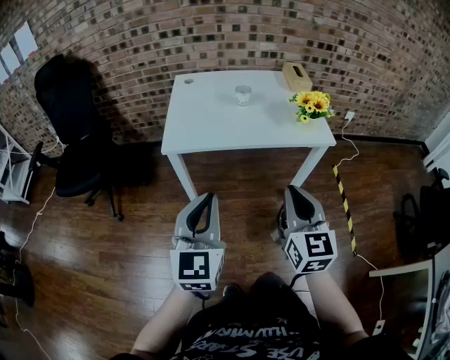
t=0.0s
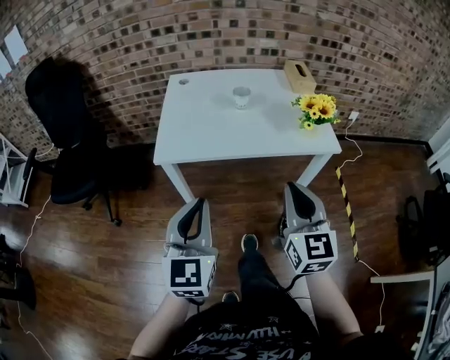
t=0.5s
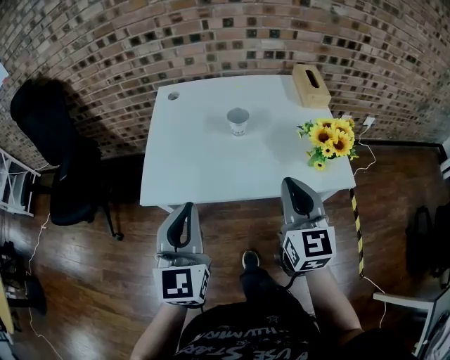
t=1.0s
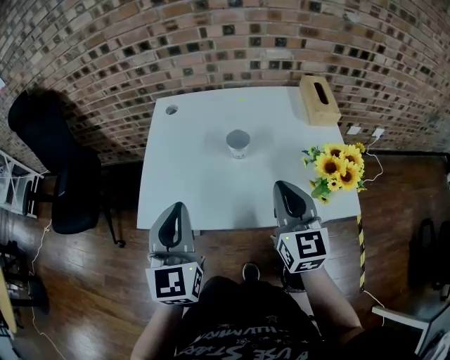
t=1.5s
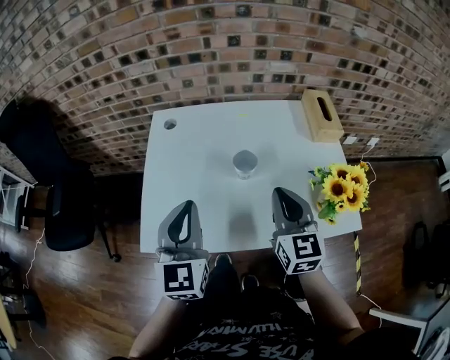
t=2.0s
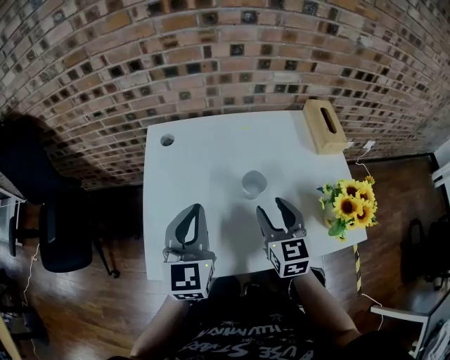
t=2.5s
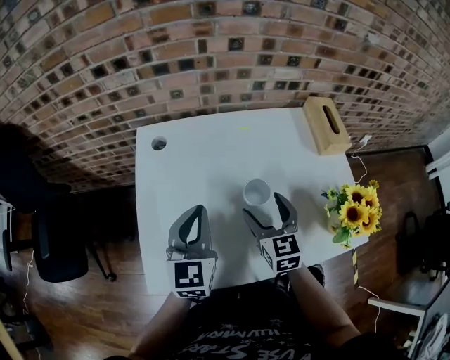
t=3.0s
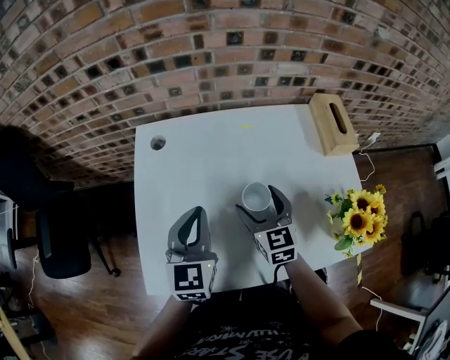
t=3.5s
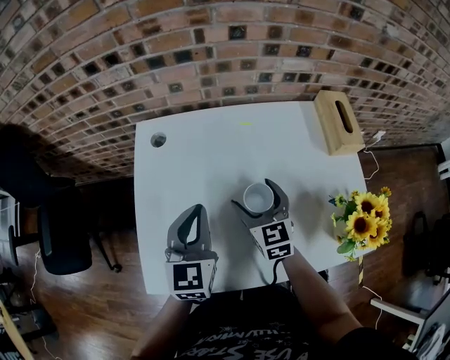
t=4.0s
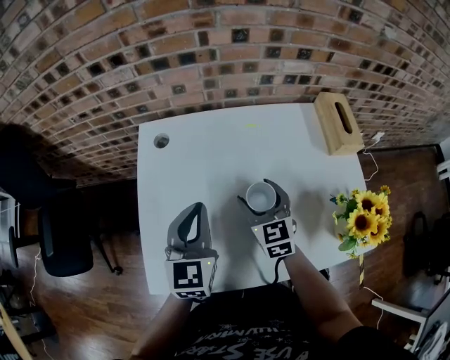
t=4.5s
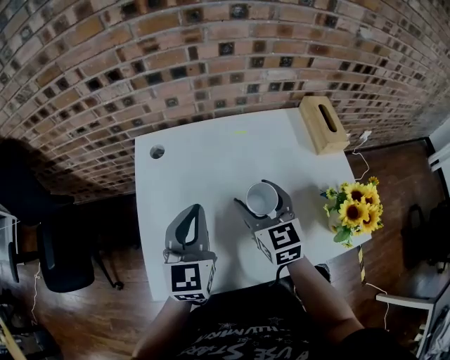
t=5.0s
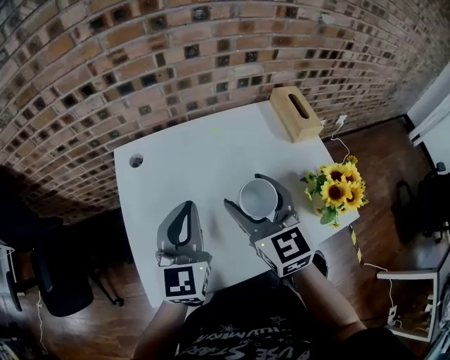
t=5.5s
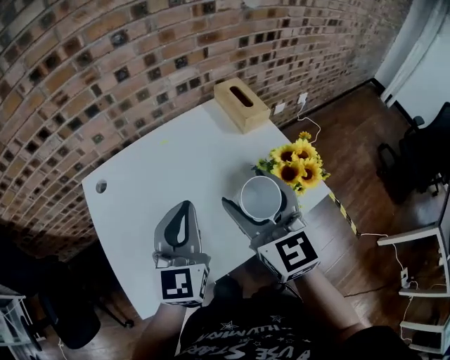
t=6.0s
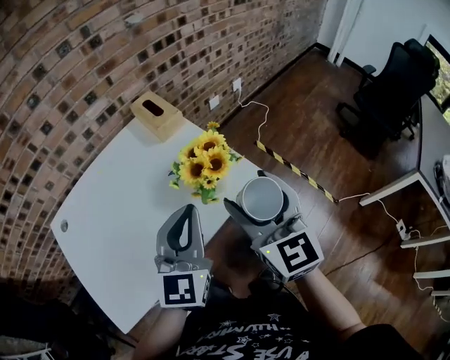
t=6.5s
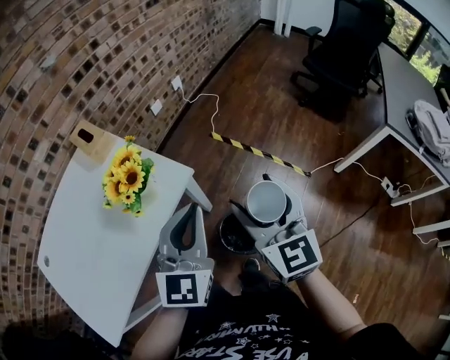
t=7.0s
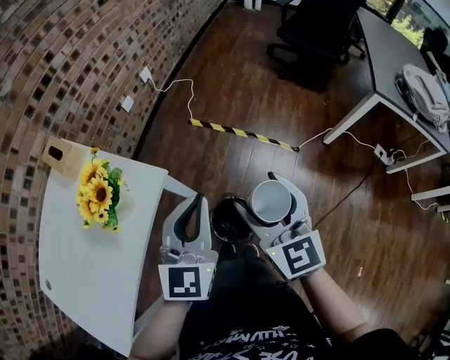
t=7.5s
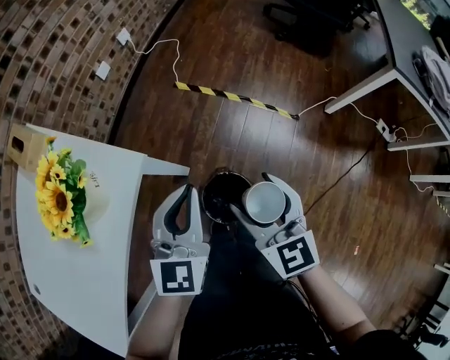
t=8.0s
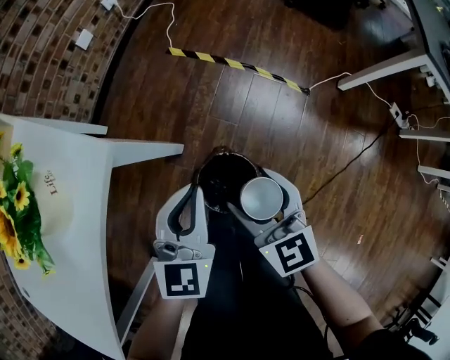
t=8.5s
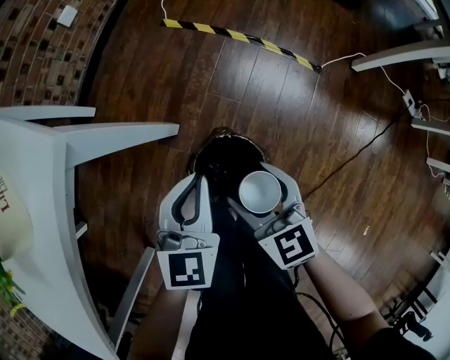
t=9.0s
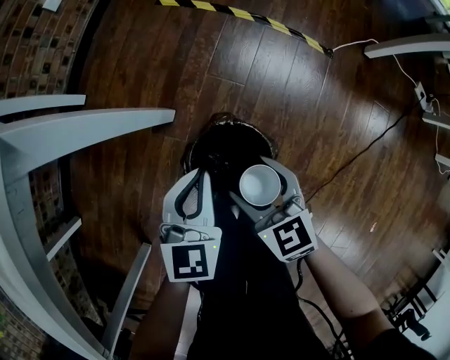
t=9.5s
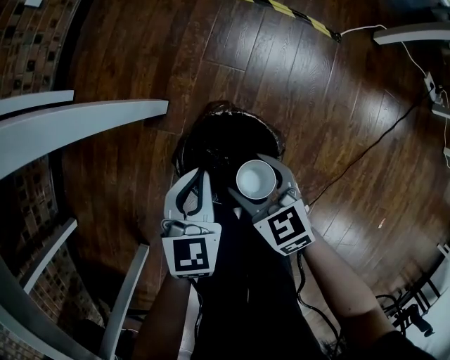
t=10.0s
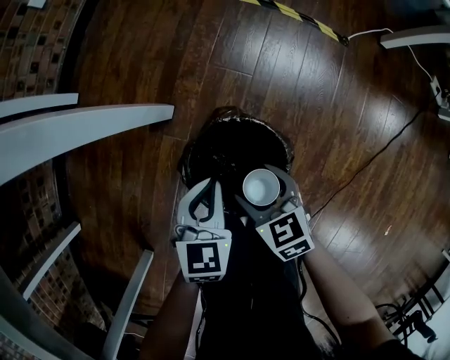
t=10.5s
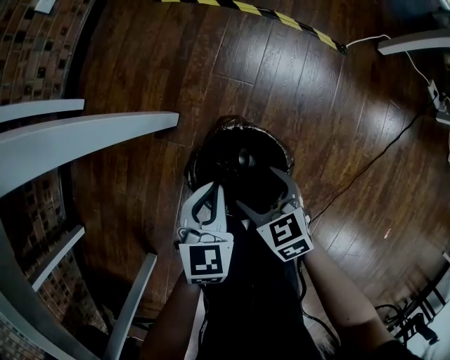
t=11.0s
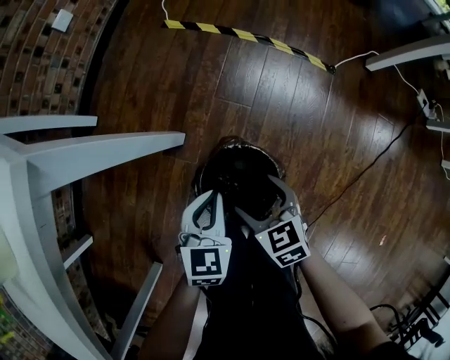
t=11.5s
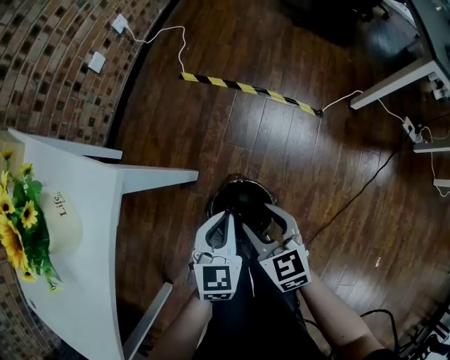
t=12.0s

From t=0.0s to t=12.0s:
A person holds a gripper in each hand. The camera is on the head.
From t=0.0s to t=2.0s: The two grippers go about 40 cm forward.
From t=2.0s to t=4.0s: The right gripper moves forward, downward and to the left, approximately 20 cm, and opens up; the left gripper goes approximately 15 cm forward and downward.
From t=4.0s to t=6.0s: The left gripper travels to the right and upward by roughly 15 cm, and rotates about 30 degrees. Meanwhile the right gripper heads upward, to the right and backward, covering about 25 cm, and turns by about 30 degrees.
From t=6.0s to t=8.0s: The two grippers travel together, about 50 cm. The right gripper rotates some 40 degrees. Meanwhile the left gripper turns by roughly 50 degrees.
From t=8.0s to t=10.0s: The two grippers go some 40 cm downward. The left gripper swivels roughly 20 degrees. The right gripper changes its angle by about 30 degrees.
From t=10.0s to t=12.0s: The grippers both shift upward by about 15 cm.

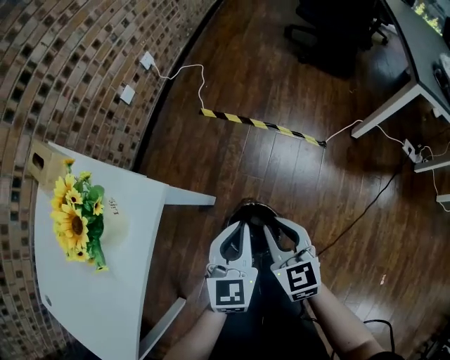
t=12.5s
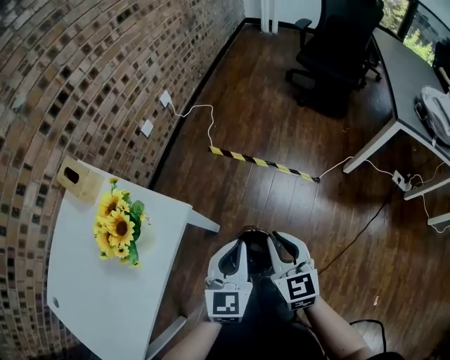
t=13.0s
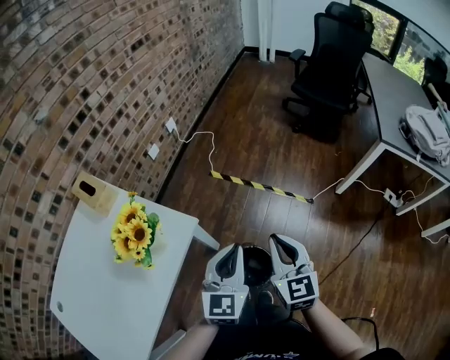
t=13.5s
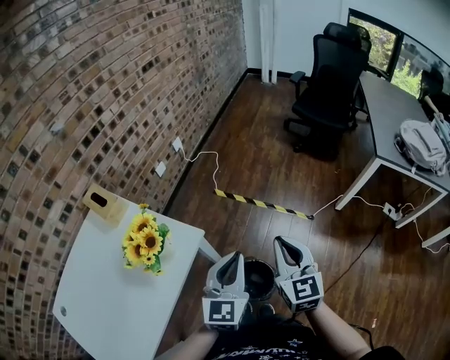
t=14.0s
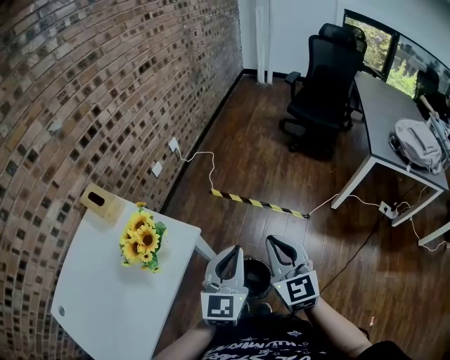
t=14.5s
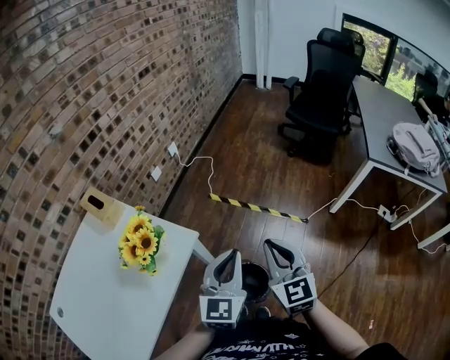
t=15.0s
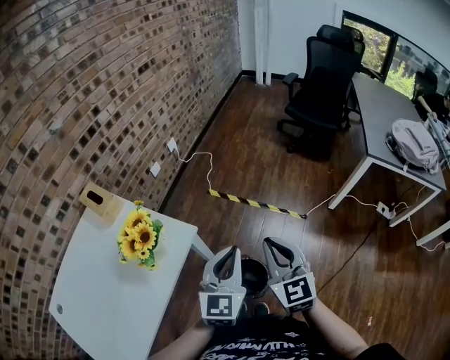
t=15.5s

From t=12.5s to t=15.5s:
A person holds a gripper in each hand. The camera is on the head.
From t=12.5s to t=14.0s: The two grippers go approximately 20 cm upward.
From t=14.0s to t=15.5s: The grippers stay close to where they were, moving slightly.

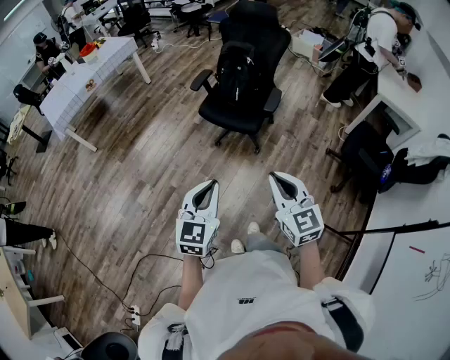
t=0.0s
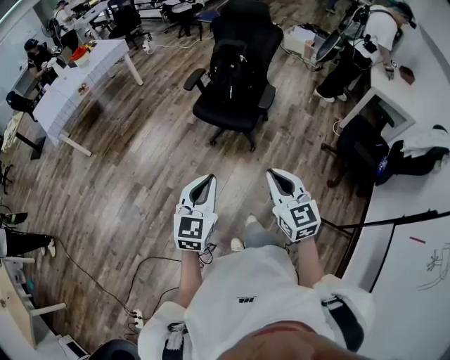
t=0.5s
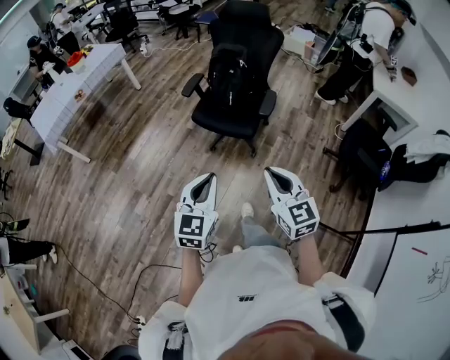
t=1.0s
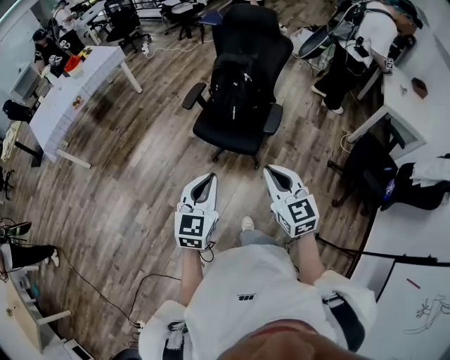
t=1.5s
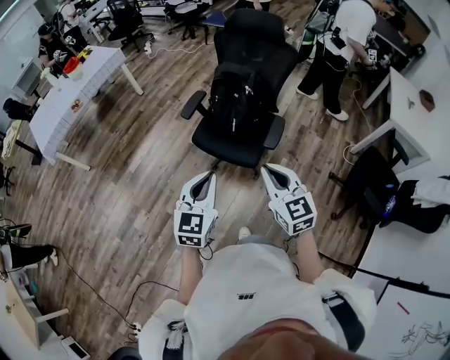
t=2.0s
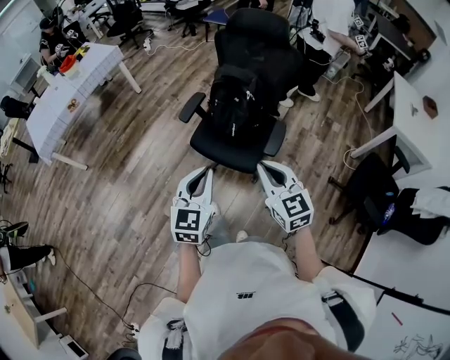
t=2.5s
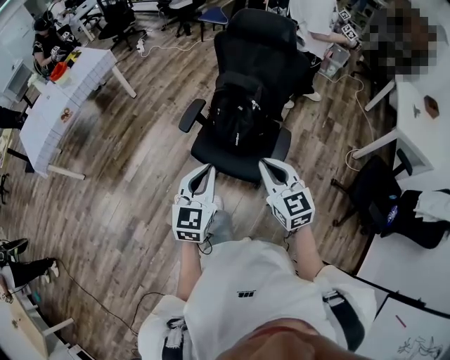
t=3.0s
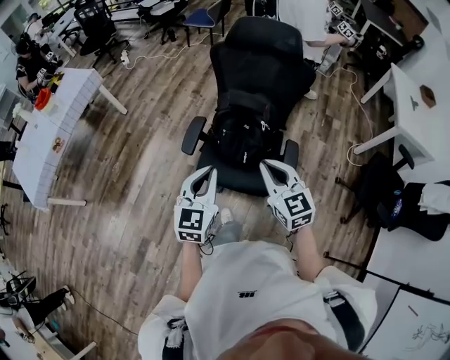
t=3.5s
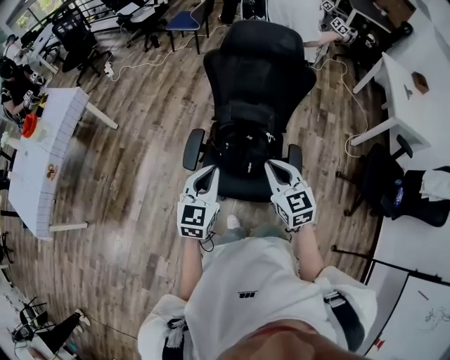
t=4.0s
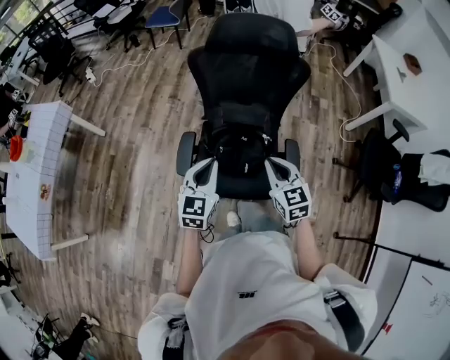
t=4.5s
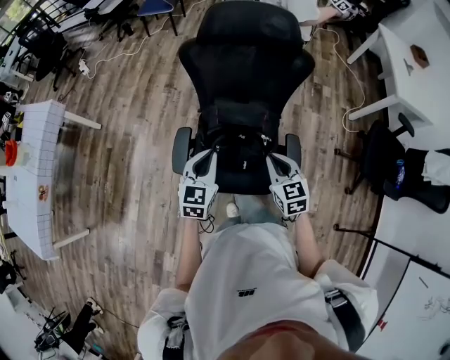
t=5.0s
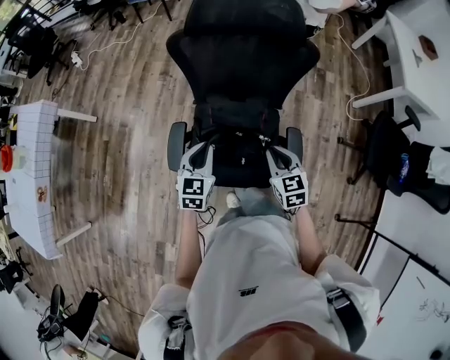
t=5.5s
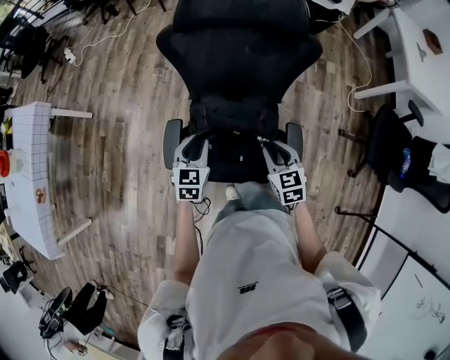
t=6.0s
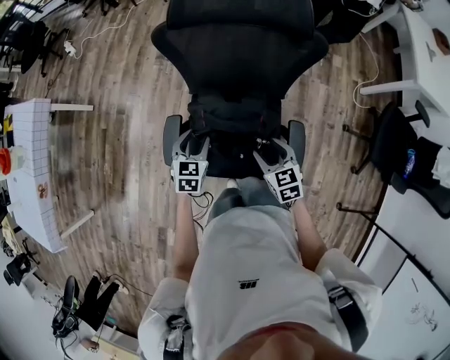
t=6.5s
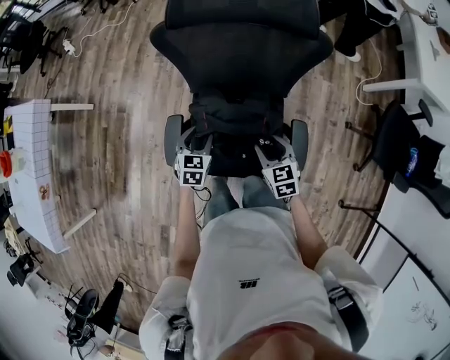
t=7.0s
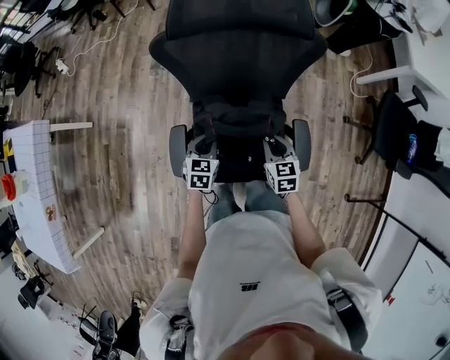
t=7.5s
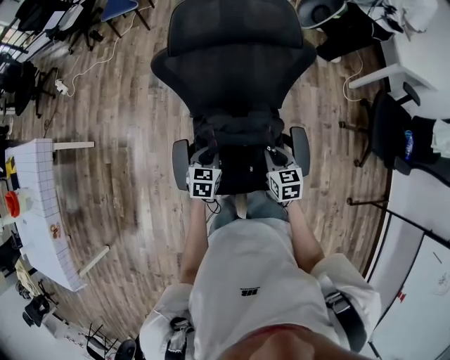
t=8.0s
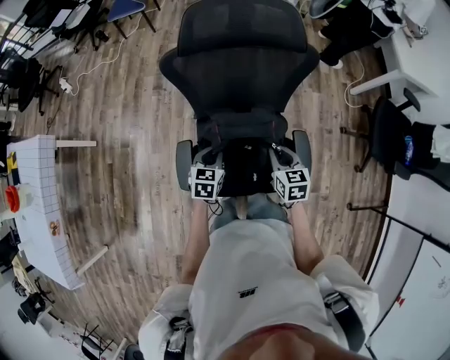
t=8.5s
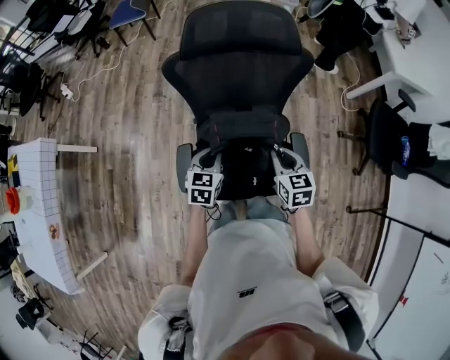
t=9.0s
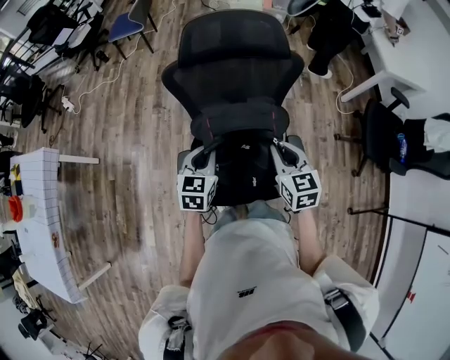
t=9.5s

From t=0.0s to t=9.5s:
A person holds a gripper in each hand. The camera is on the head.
From t=0.0s to t=2.0s: The two grippers go approximately 35 cm forward.
From t=2.0s to t=4.0s: Both grippers travel together forward, roughly 40 cm.
From t=4.0s to t=5.5s: The left gripper is displaced forward and downward by roughly 25 cm. Meanwhile the right gripper shifts about 25 cm downward, forward and to the right.
From t=5.5s to t=7.5s: Both grippers travel together downward and forward, roughly 15 cm. The left gripper opens, then closes once more. Meanwhile the right gripper opens and closes again.
From t=7.5s to t=9.5s: Both grippers travel together upward, about 20 cm.

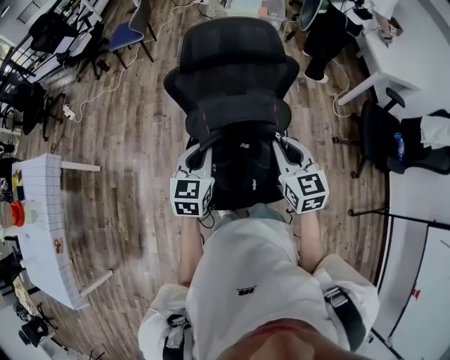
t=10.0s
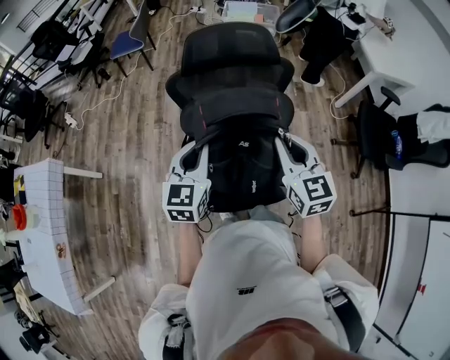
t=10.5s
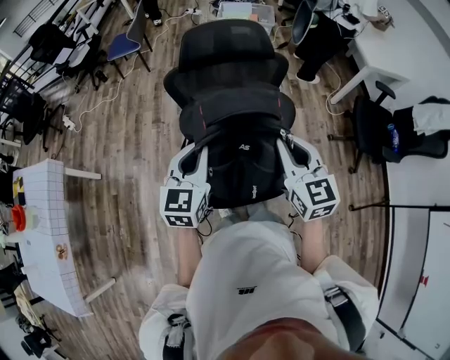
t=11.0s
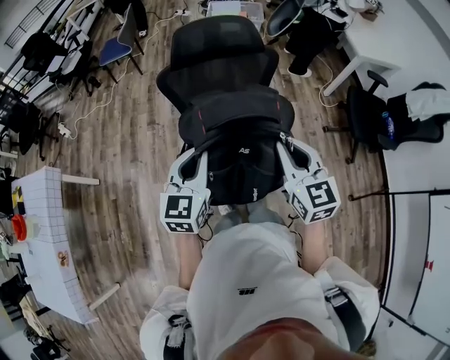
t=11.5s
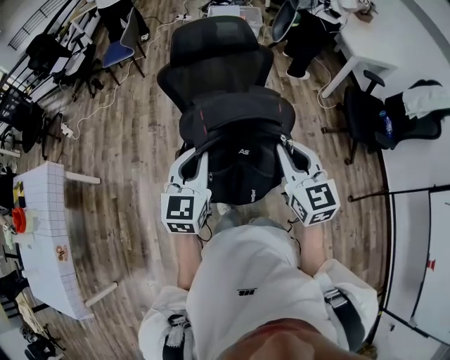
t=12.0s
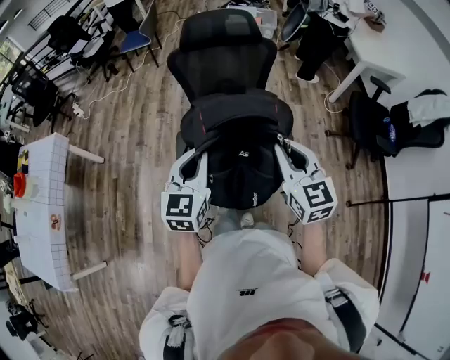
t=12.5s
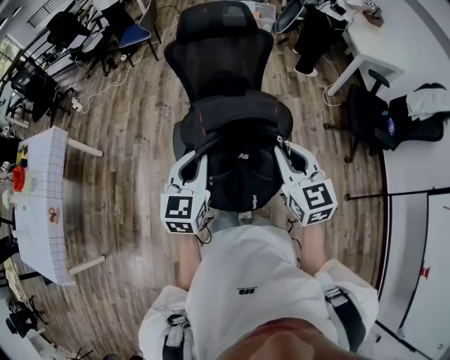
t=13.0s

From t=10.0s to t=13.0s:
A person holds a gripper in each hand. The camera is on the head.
From t=10.0s to t=11.5s: Both grippers travel together backward and upward, some 15 cm.
From t=11.5s to t=13.0s: The grippers both shift backward by approximately 20 cm.
